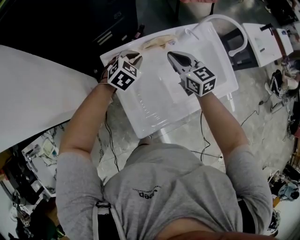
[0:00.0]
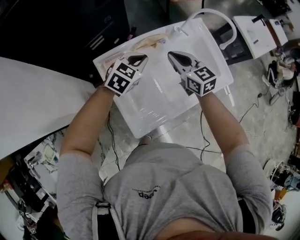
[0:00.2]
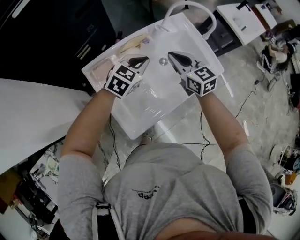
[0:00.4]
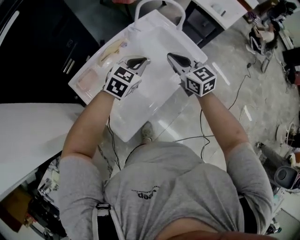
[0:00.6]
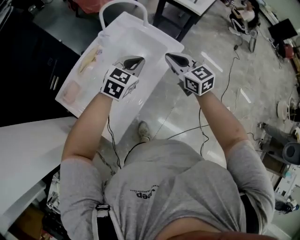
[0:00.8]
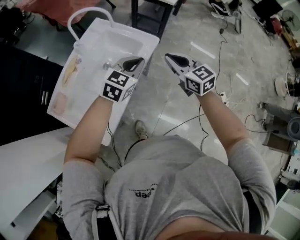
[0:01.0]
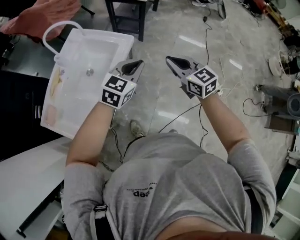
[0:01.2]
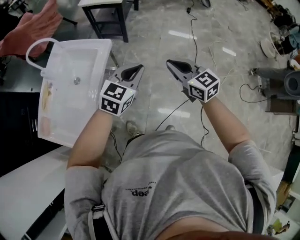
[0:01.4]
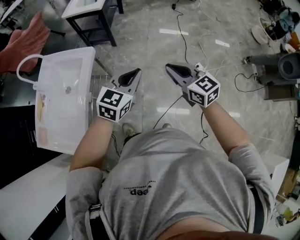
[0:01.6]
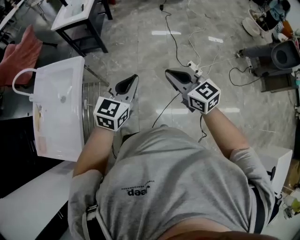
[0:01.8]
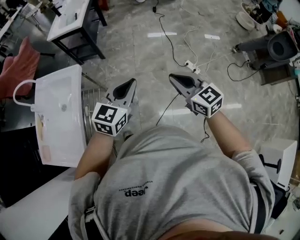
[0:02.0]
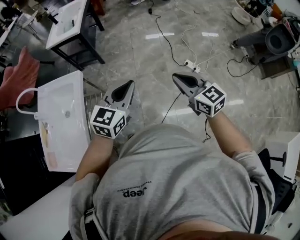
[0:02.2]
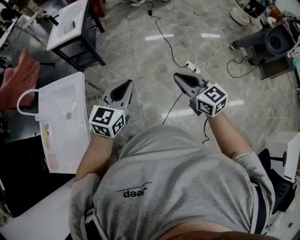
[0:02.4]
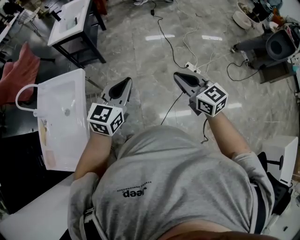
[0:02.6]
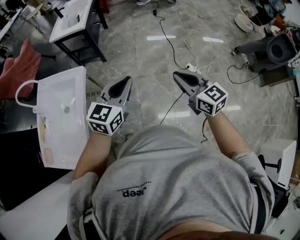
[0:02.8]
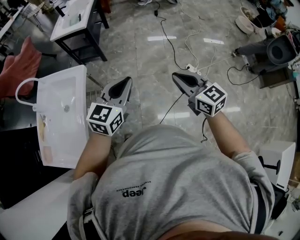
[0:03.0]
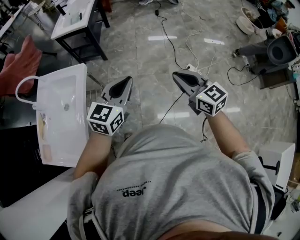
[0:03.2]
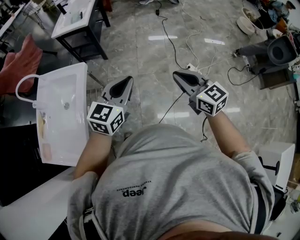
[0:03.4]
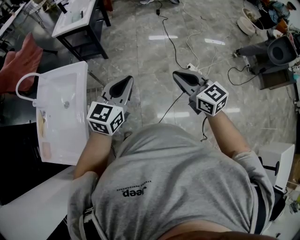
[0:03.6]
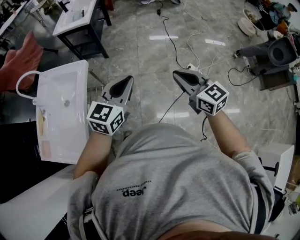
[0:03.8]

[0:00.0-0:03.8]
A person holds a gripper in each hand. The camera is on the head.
0:00.0 to 0:01.2: The pair of grippers is taken approximately 50 cm. The right gripper rotates some 40 degrees. The left gripper turns by some 50 degrees.
0:01.2 to 0:02.6: Both grippers move to the right, some 30 cm. The right gripper swivels some 20 degrees.
0:02.6 to 0:03.8: The grippers make only small movements.

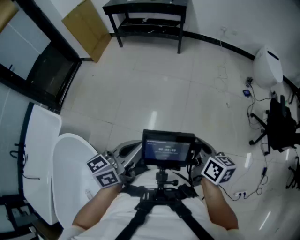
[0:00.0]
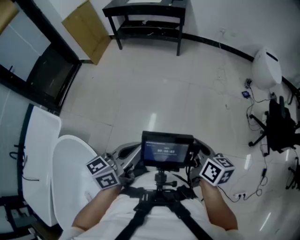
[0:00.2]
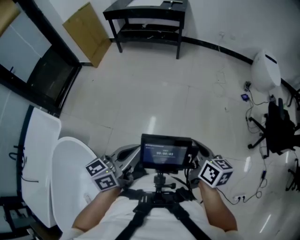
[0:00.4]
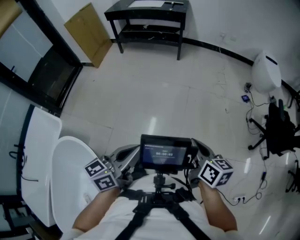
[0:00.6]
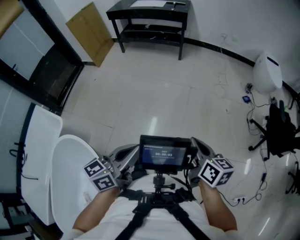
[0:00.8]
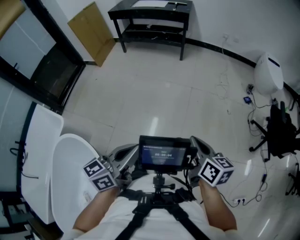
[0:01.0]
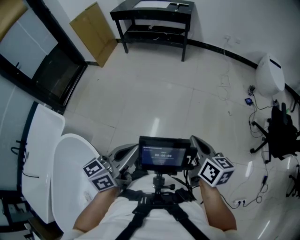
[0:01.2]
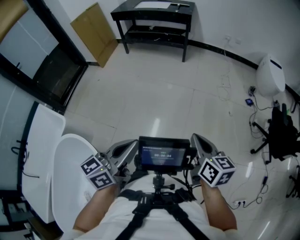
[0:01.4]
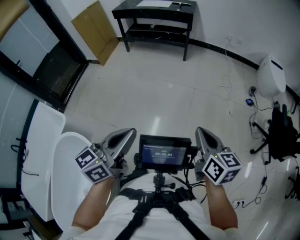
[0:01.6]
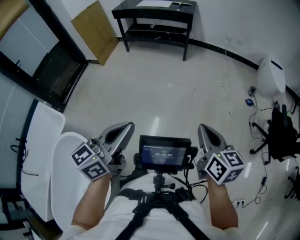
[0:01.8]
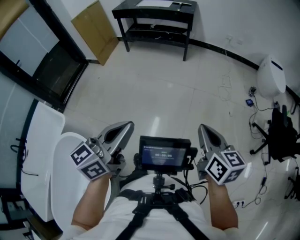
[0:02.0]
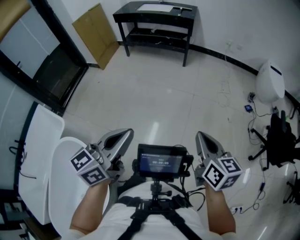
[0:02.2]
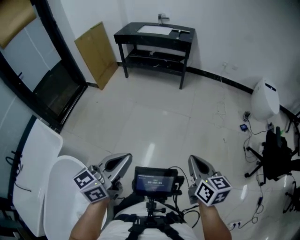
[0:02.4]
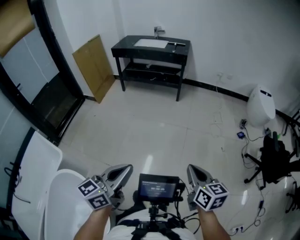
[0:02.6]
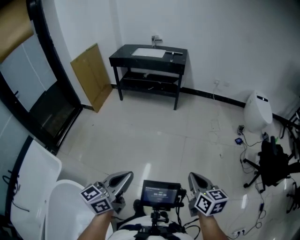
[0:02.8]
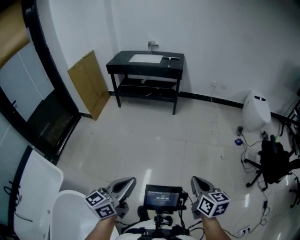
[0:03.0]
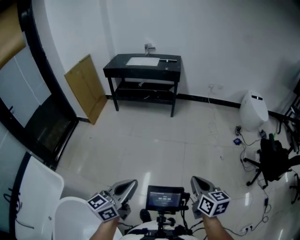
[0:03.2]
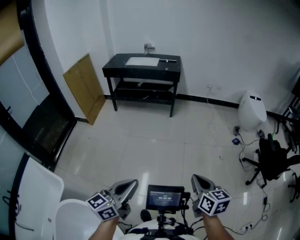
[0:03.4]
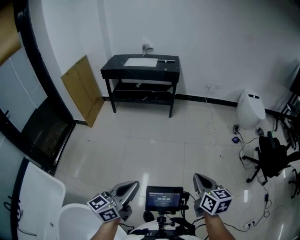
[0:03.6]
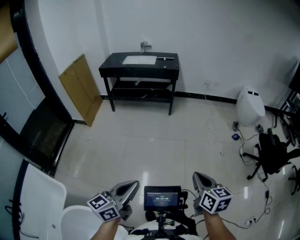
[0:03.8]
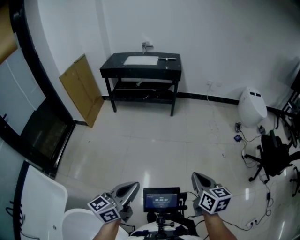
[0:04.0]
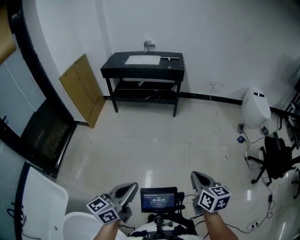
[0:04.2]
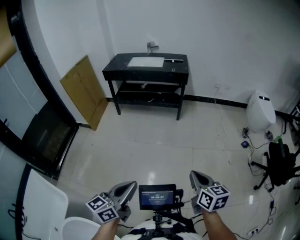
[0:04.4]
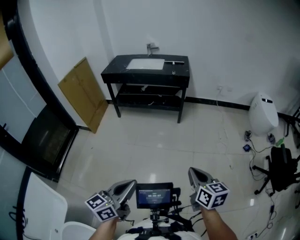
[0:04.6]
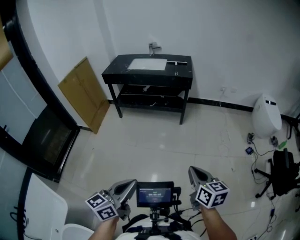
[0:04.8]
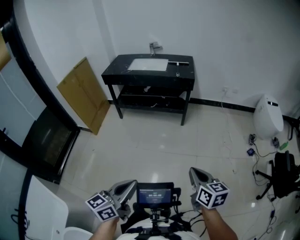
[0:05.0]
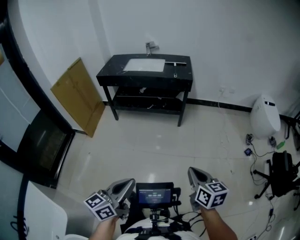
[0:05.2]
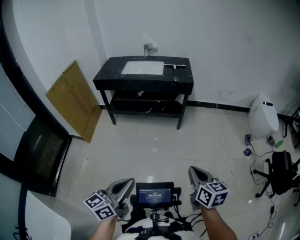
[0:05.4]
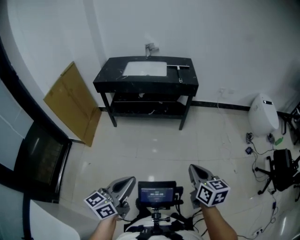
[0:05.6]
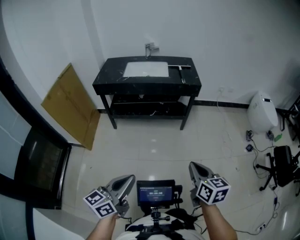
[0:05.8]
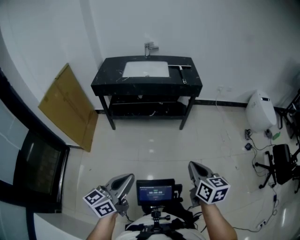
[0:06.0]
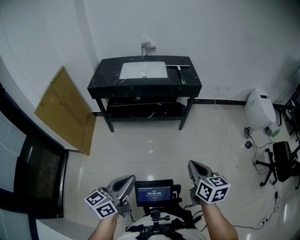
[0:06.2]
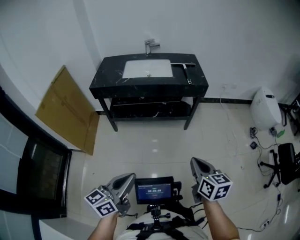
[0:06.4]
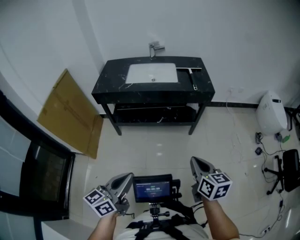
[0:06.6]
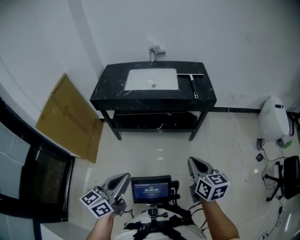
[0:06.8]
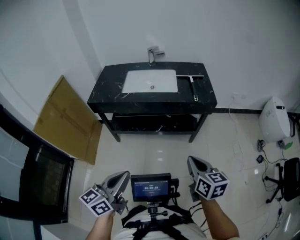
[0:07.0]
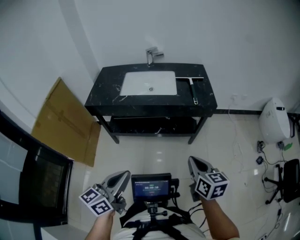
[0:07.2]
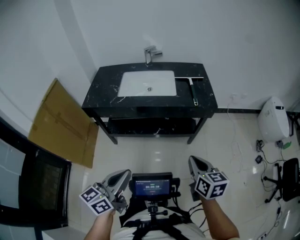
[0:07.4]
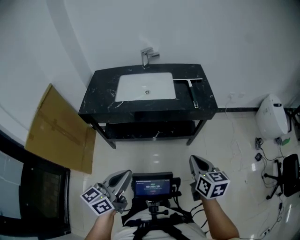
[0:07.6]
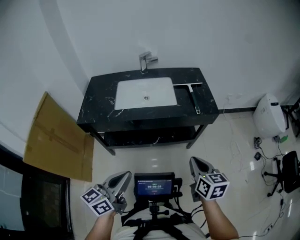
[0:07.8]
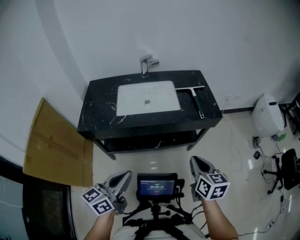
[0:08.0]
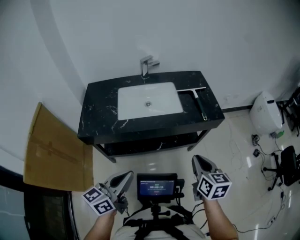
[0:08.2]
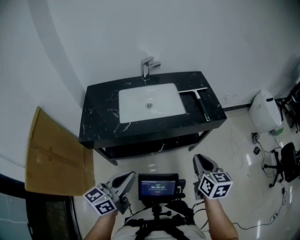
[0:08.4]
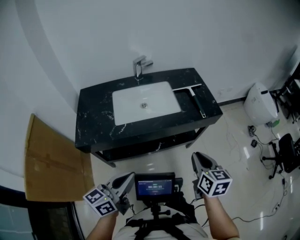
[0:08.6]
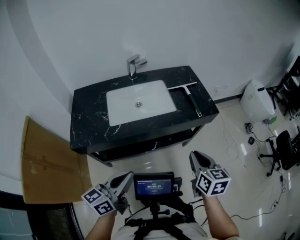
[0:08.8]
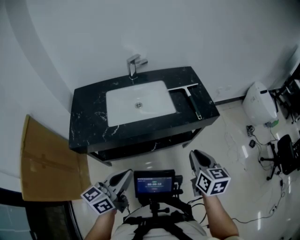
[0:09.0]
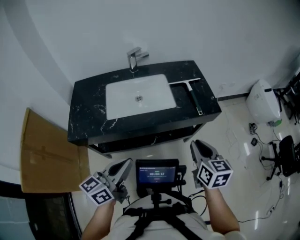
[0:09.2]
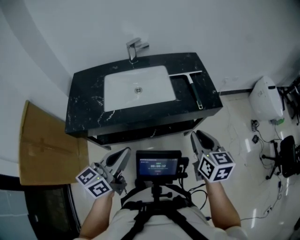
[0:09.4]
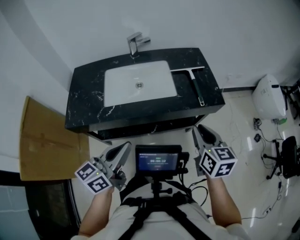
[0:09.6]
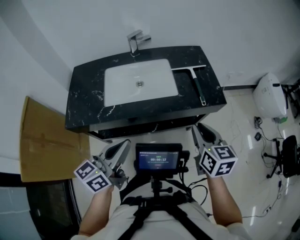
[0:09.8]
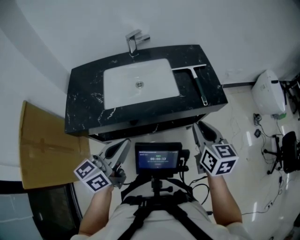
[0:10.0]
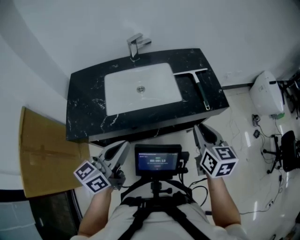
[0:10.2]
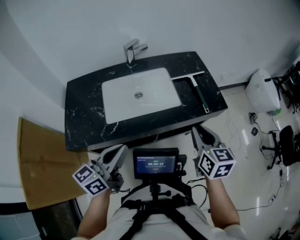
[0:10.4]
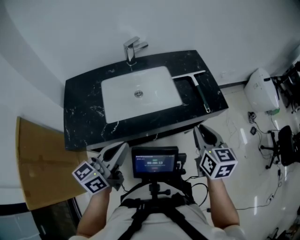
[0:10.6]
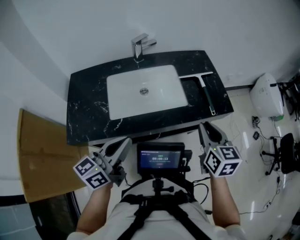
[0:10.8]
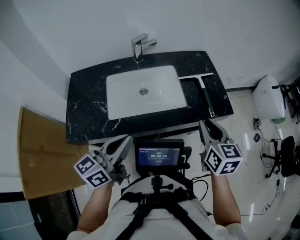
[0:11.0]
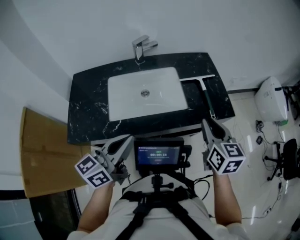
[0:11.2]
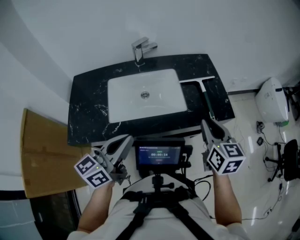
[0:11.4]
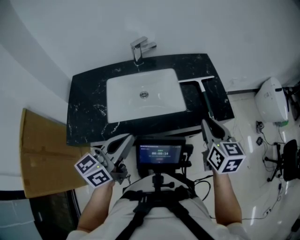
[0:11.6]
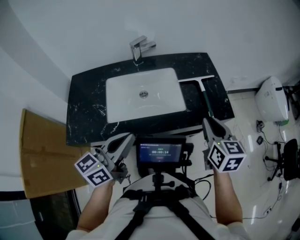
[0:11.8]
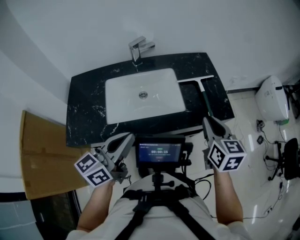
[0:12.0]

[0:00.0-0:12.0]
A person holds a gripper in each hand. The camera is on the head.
0:00.0 to 0:01.6: Both grippers travel together upward, some 5 cm.
0:01.6 to 0:03.0: The right gripper goes about 5 cm to the left; the left gripper travels to the left and forward by about 10 cm.
0:03.0 to 0:04.4: The grippers both shift forward and to the left by some 20 cm.
0:04.4 to 0:06.0: Both grippers move forward and to the left, some 40 cm.
0:06.0 to 0:07.6: The grippers both shift forward by approximately 35 cm.
0:07.6 to 0:09.0: The two grippers go some 15 cm forward and to the left.
0:09.0 to 0:10.4: The two grippers go approximately 10 cm forward.
0:10.4 to 0:12.0: The grippers both shift forward by about 10 cm.

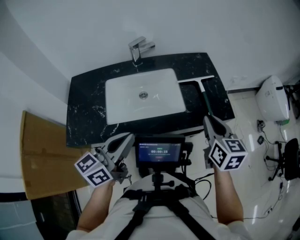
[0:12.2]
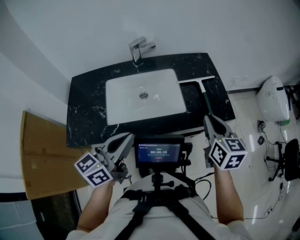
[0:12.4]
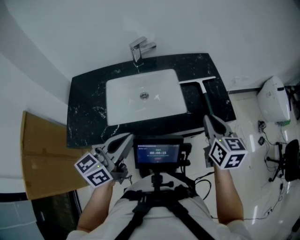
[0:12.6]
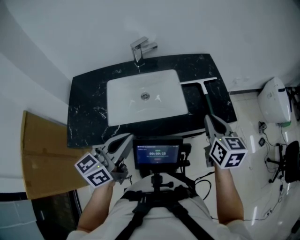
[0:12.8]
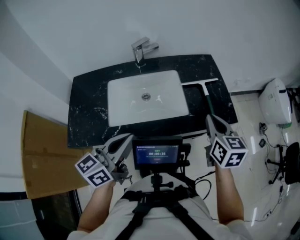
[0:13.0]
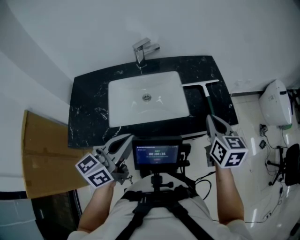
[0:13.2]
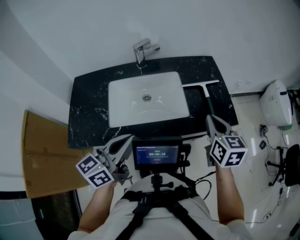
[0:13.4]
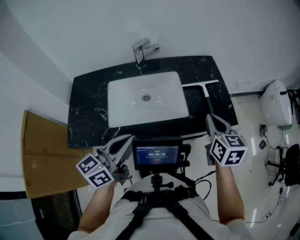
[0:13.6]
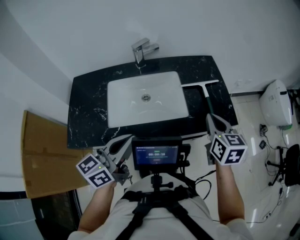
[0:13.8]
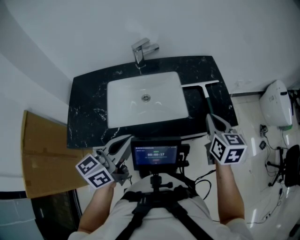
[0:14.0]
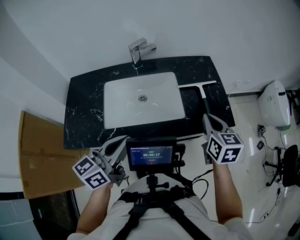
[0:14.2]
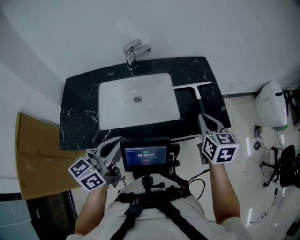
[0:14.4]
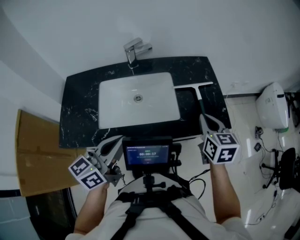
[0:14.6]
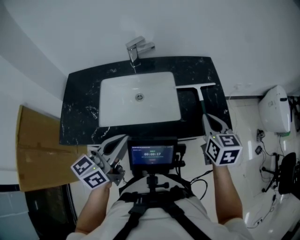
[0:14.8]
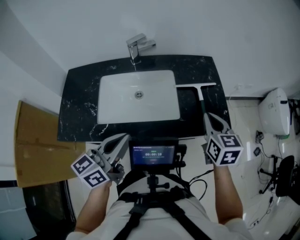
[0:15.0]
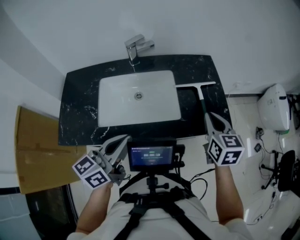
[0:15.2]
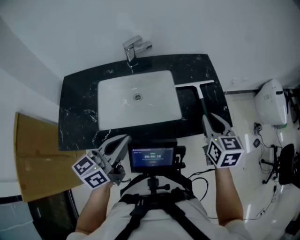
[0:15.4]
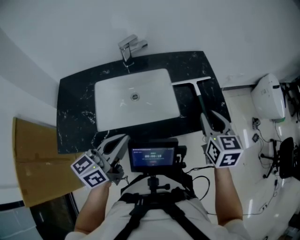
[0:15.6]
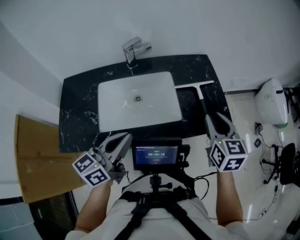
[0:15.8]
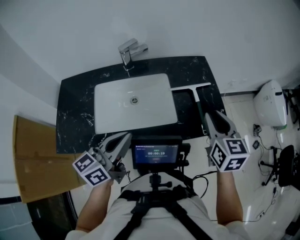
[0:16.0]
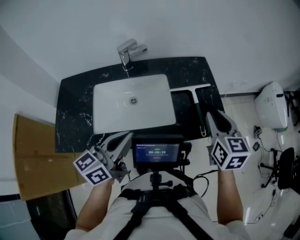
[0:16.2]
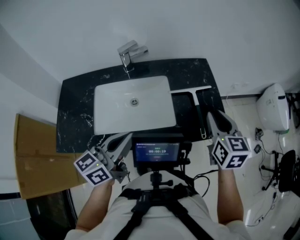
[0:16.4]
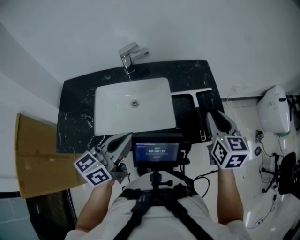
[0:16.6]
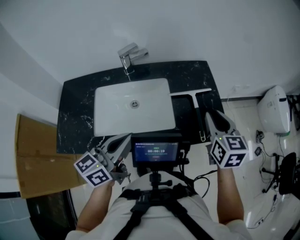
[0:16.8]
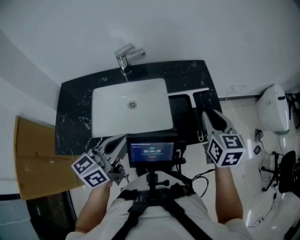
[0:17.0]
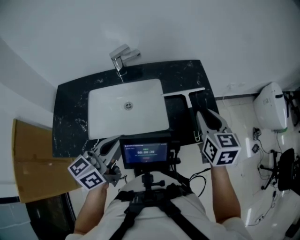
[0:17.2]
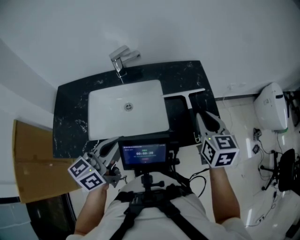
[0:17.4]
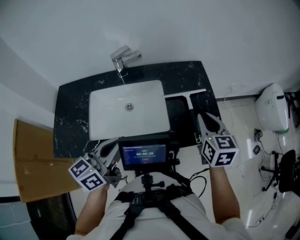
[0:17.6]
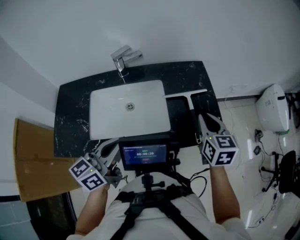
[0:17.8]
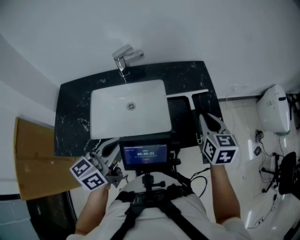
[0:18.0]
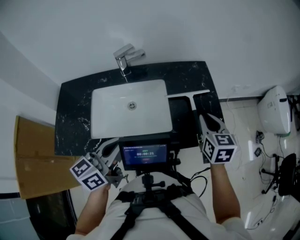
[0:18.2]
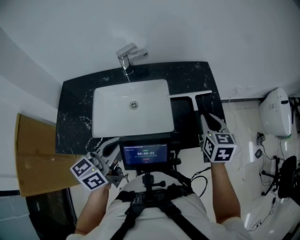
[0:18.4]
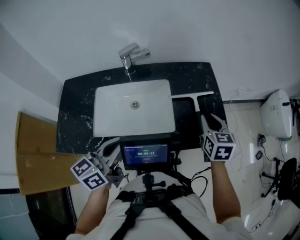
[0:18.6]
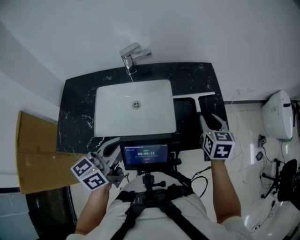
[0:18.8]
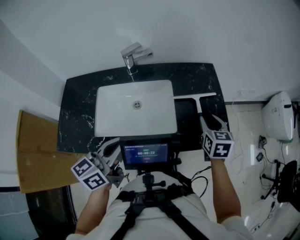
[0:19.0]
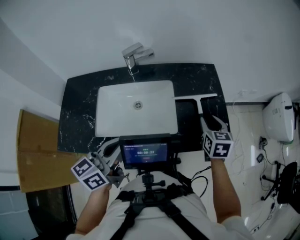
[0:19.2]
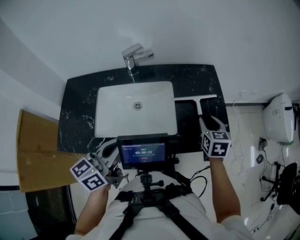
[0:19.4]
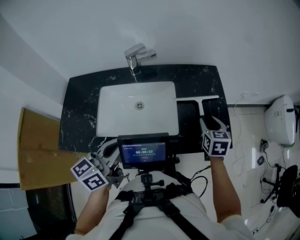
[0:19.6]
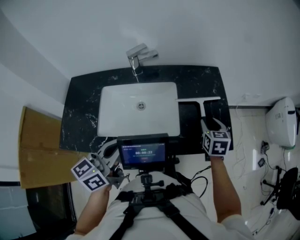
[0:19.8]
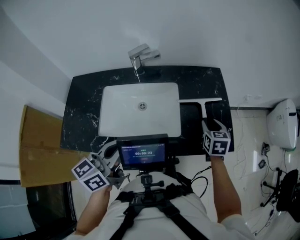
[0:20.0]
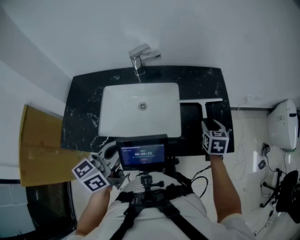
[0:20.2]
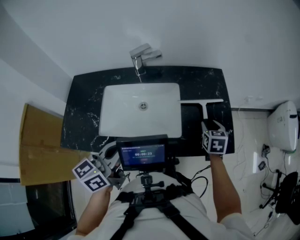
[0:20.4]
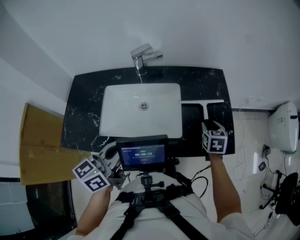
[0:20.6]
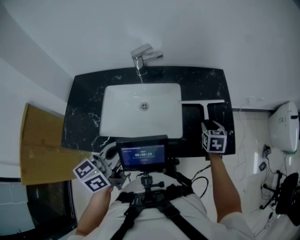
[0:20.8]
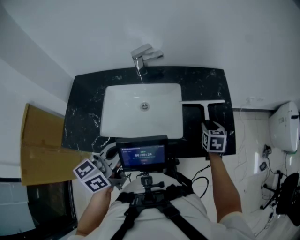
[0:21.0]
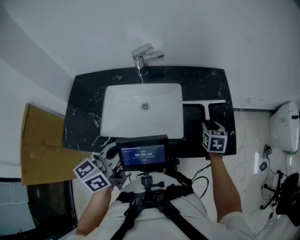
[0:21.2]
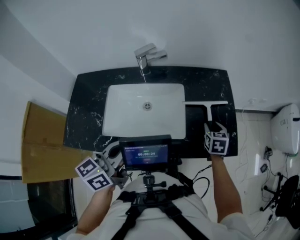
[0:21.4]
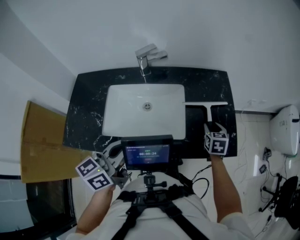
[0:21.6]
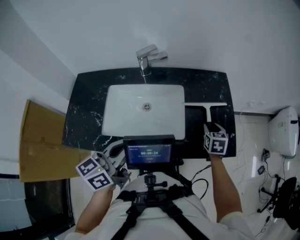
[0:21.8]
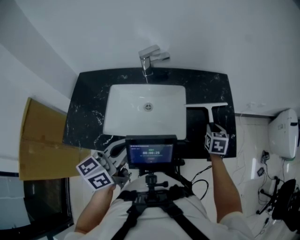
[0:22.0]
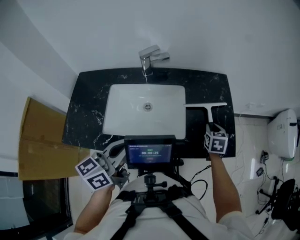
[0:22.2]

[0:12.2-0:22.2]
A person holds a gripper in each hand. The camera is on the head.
0:12.2 to 0:13.6: The grippers make only small movements.
0:13.6 to 0:15.0: The right gripper changes place by roughly 5 cm.
0:15.0 to 0:16.4: The right gripper opens up.
0:16.4 to 0:18.0: The right gripper shifts by about 5 cm.
0:18.0 to 0:19.4: The right gripper is displaced downward by some 5 cm, and opens up.
0:19.4 to 0:20.8: The right gripper heads downward, covering roughly 10 cm.
0:20.8 to 0:22.2: The right gripper closes up.
